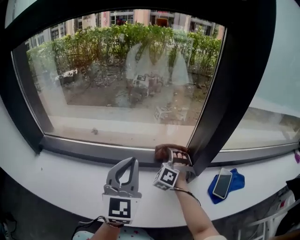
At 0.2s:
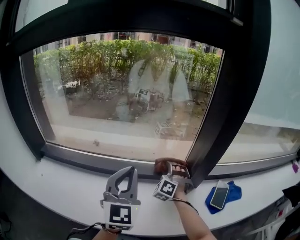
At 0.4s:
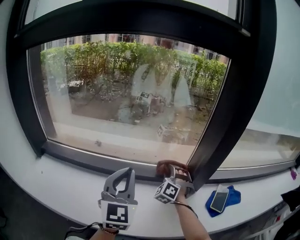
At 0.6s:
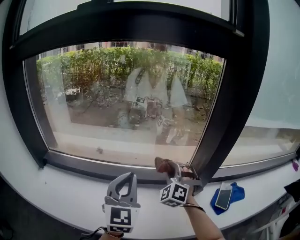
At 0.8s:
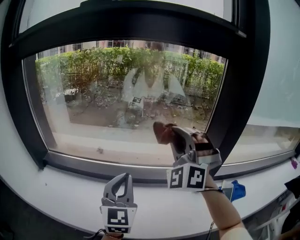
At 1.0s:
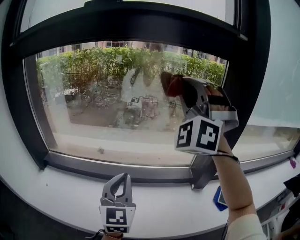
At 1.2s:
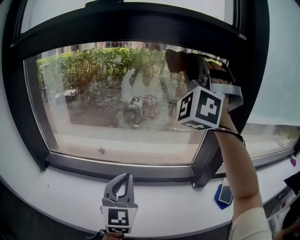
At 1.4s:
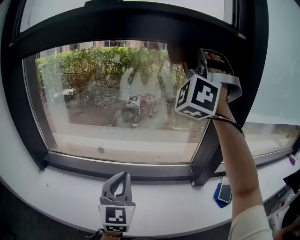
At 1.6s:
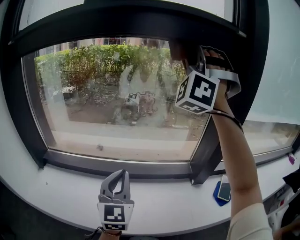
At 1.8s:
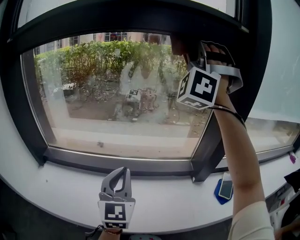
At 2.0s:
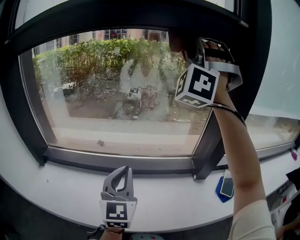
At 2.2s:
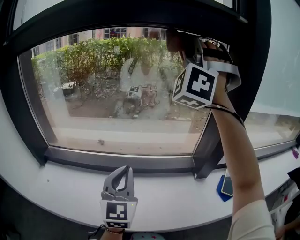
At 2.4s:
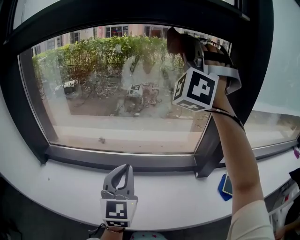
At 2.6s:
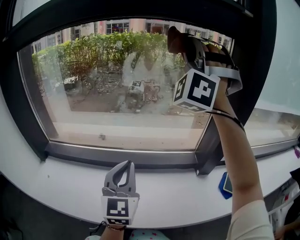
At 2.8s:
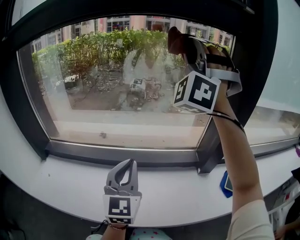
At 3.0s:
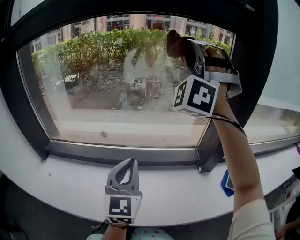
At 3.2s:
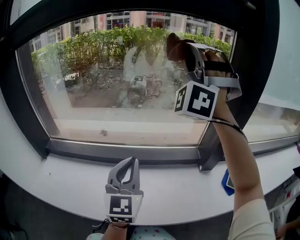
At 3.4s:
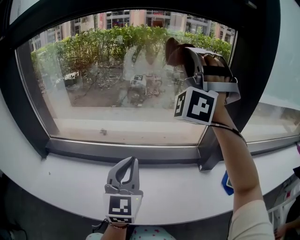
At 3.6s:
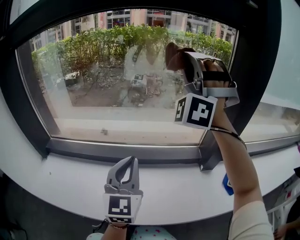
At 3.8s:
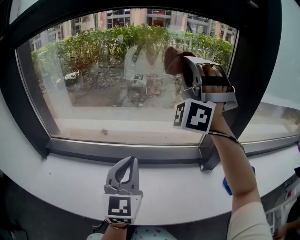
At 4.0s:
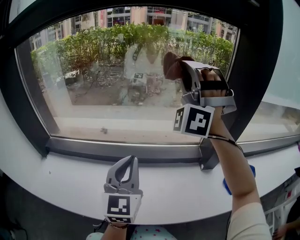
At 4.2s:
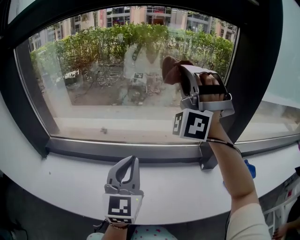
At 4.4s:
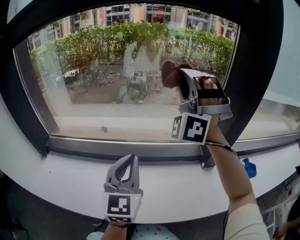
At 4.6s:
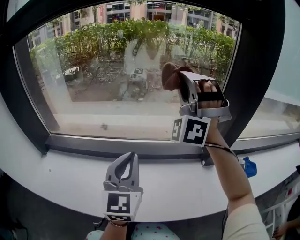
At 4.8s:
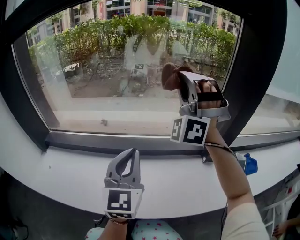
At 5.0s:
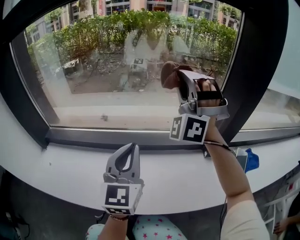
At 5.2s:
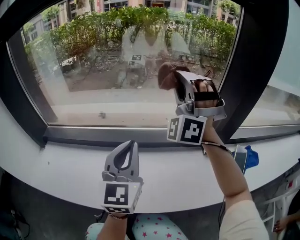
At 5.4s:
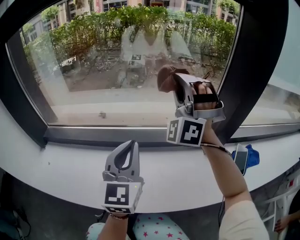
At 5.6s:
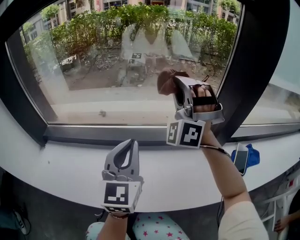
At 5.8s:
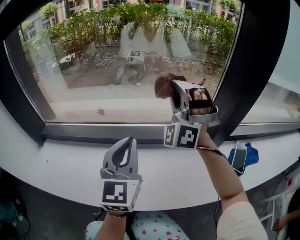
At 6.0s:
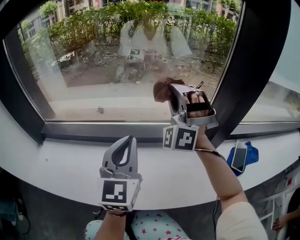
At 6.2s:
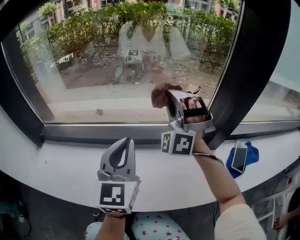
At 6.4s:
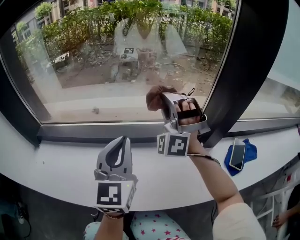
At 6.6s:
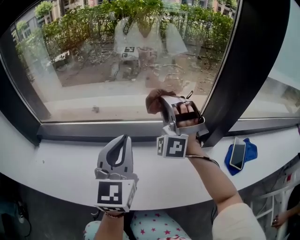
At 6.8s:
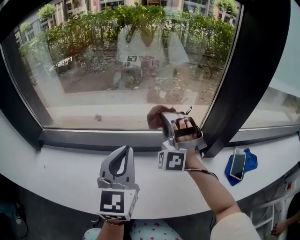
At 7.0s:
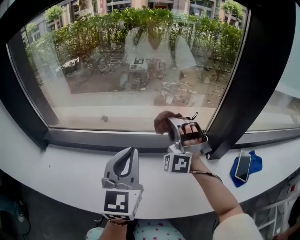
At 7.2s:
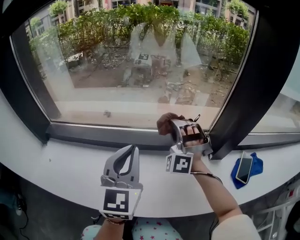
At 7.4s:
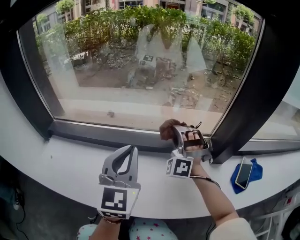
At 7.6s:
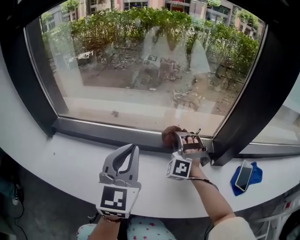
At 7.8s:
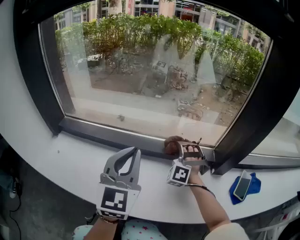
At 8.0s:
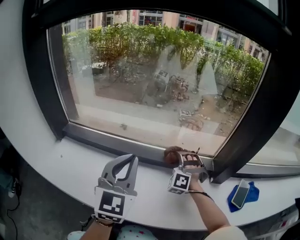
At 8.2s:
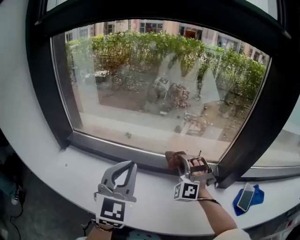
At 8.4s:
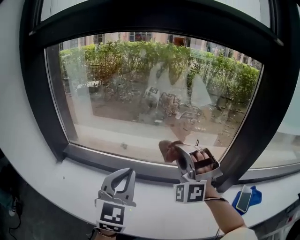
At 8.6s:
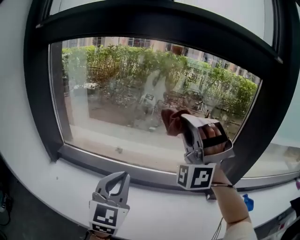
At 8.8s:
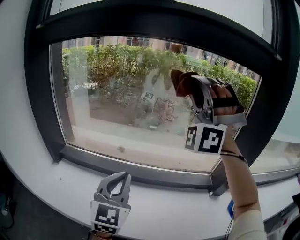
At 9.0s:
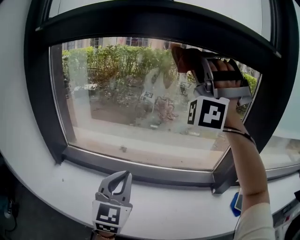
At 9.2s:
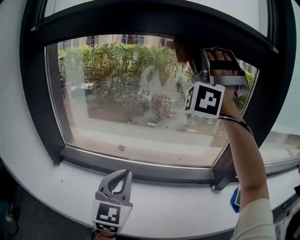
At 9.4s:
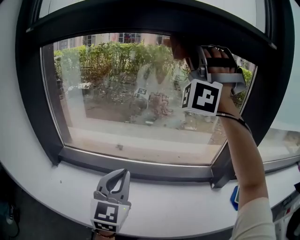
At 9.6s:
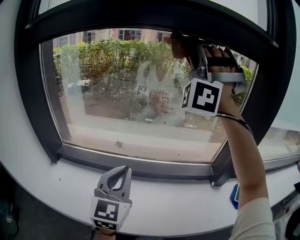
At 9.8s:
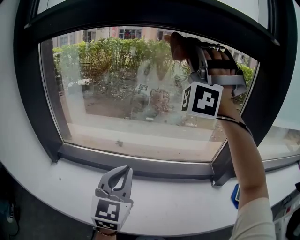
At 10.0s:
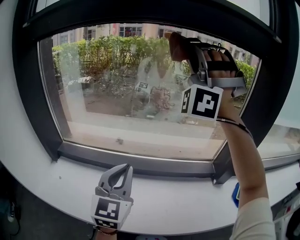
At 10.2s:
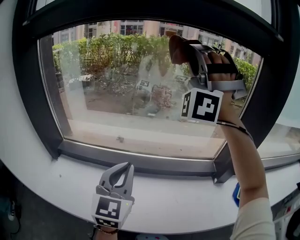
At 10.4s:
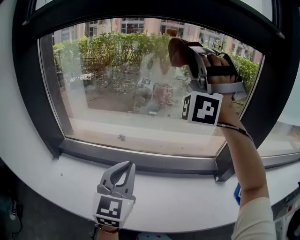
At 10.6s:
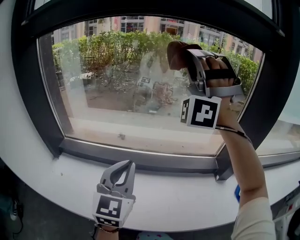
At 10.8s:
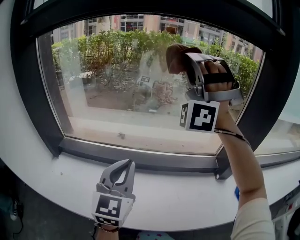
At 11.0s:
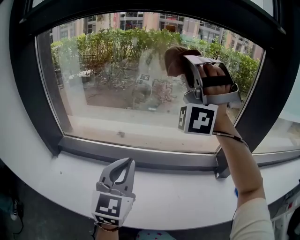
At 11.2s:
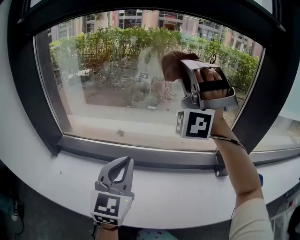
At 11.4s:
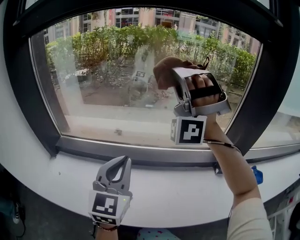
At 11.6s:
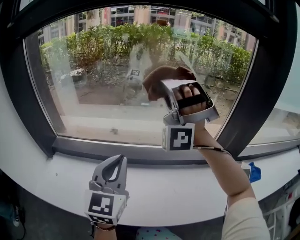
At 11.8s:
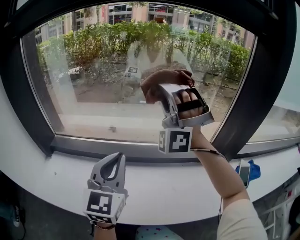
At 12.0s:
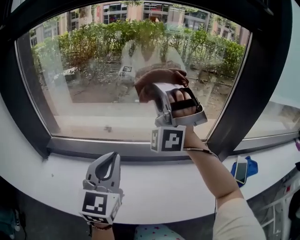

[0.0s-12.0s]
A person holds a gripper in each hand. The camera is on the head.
0.0s to 1.6s: The left gripper moves about 10 cm.
7.6s to 9.0s: The left gripper shifts by approximately 10 cm.

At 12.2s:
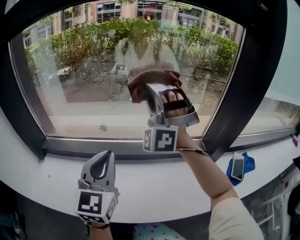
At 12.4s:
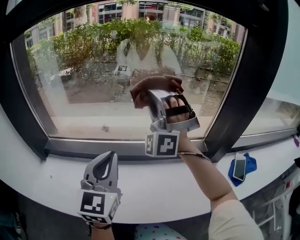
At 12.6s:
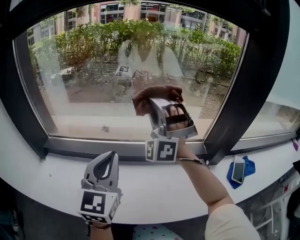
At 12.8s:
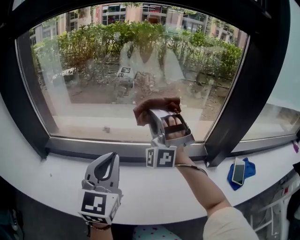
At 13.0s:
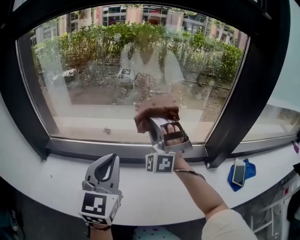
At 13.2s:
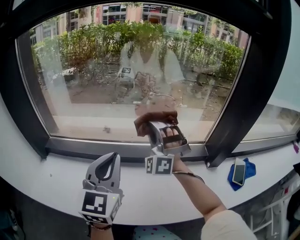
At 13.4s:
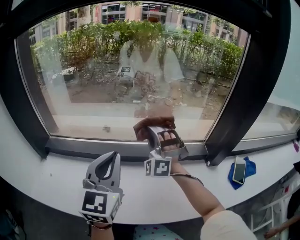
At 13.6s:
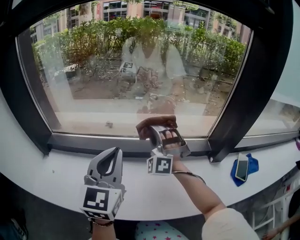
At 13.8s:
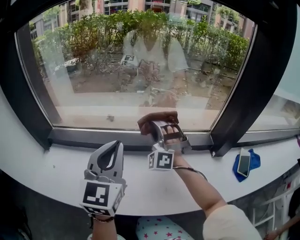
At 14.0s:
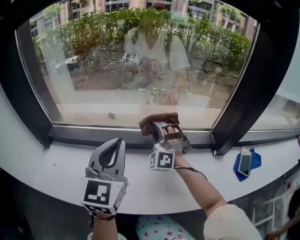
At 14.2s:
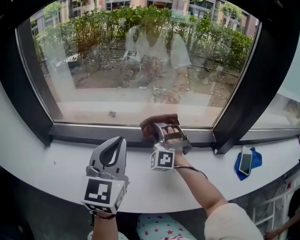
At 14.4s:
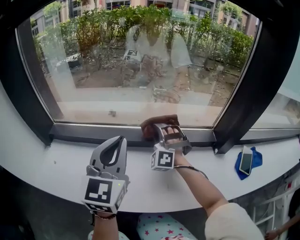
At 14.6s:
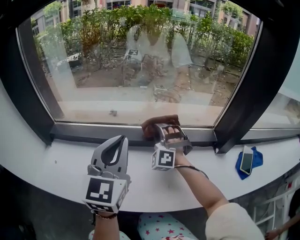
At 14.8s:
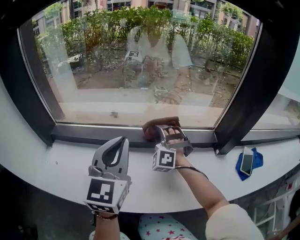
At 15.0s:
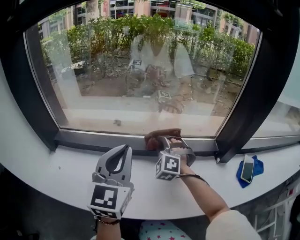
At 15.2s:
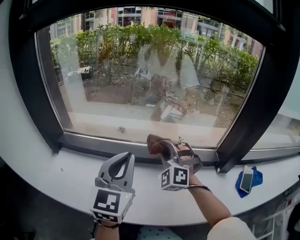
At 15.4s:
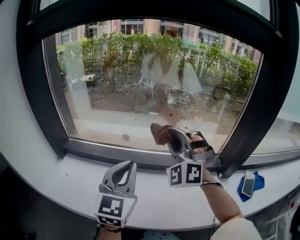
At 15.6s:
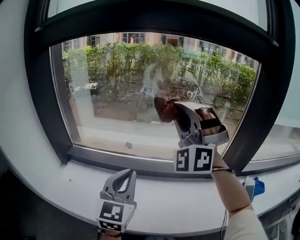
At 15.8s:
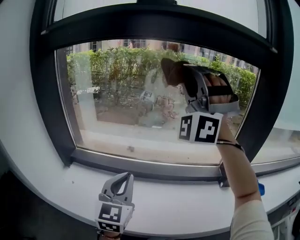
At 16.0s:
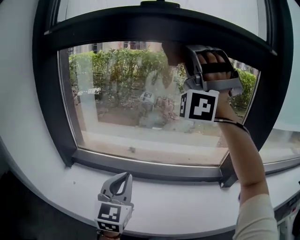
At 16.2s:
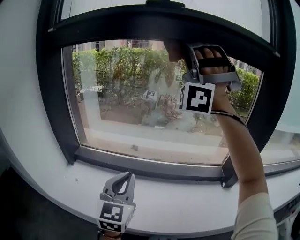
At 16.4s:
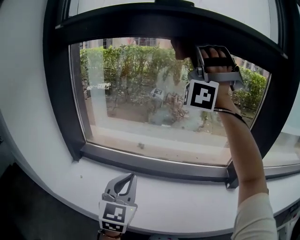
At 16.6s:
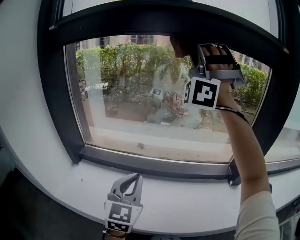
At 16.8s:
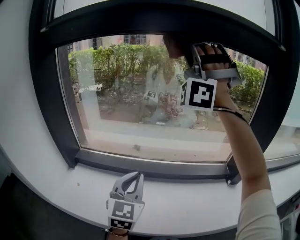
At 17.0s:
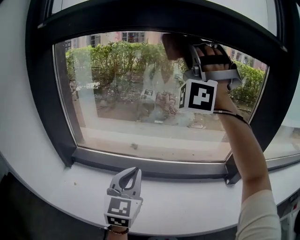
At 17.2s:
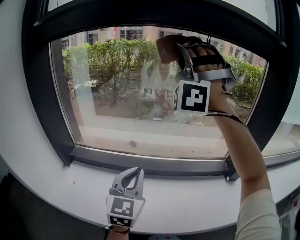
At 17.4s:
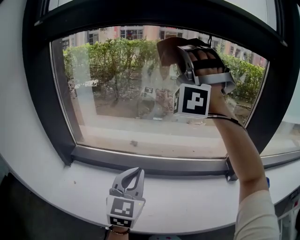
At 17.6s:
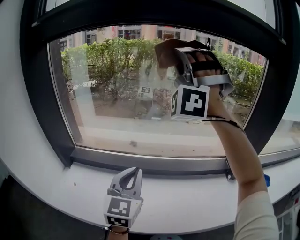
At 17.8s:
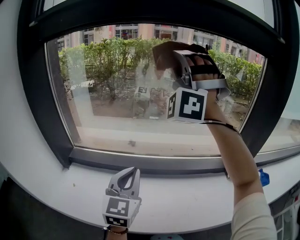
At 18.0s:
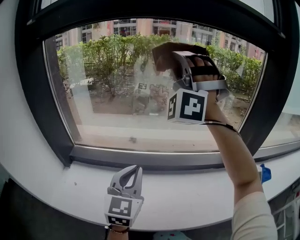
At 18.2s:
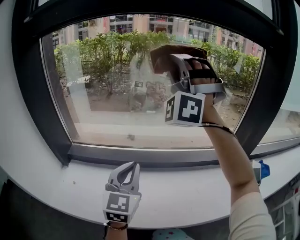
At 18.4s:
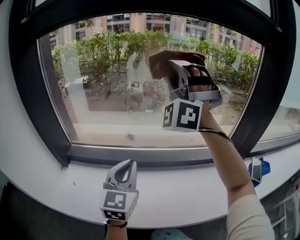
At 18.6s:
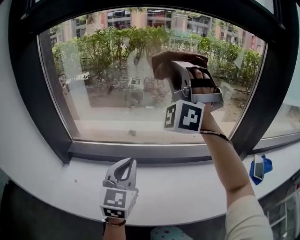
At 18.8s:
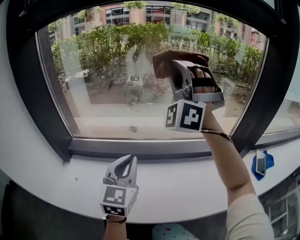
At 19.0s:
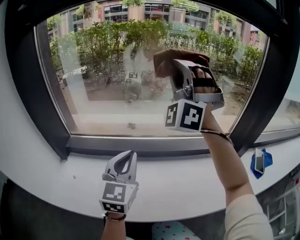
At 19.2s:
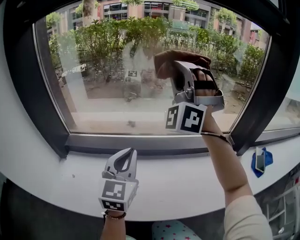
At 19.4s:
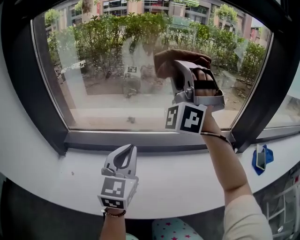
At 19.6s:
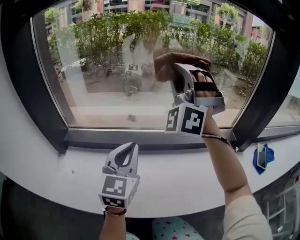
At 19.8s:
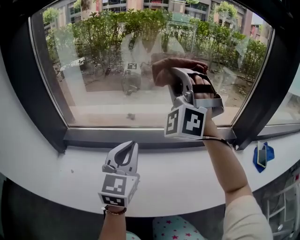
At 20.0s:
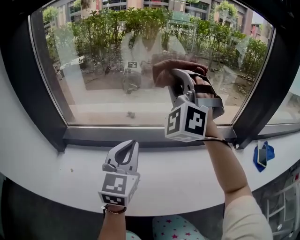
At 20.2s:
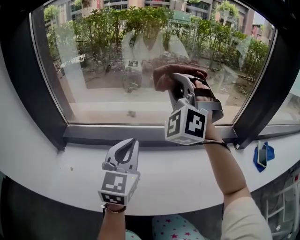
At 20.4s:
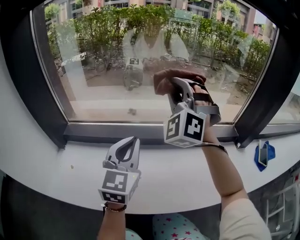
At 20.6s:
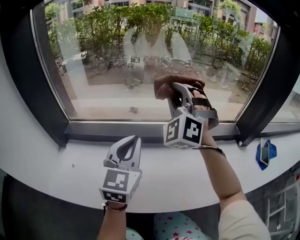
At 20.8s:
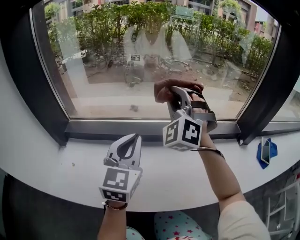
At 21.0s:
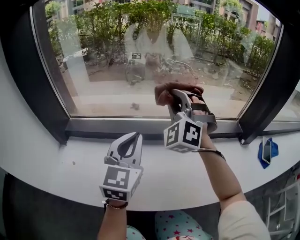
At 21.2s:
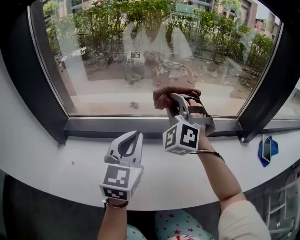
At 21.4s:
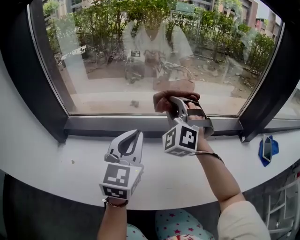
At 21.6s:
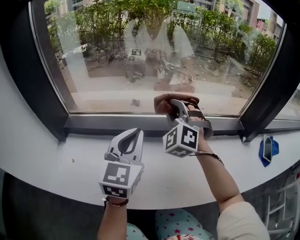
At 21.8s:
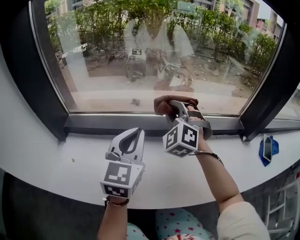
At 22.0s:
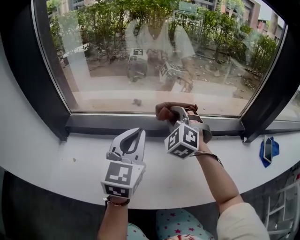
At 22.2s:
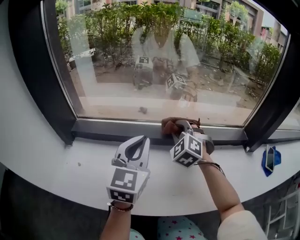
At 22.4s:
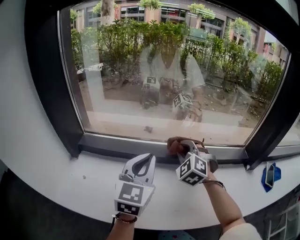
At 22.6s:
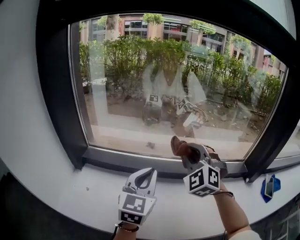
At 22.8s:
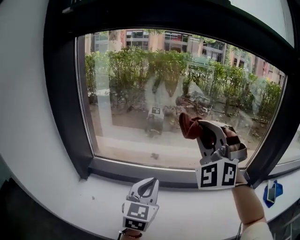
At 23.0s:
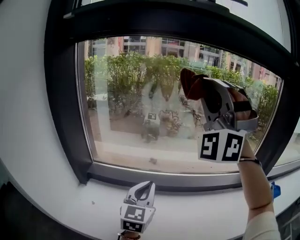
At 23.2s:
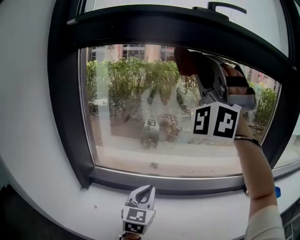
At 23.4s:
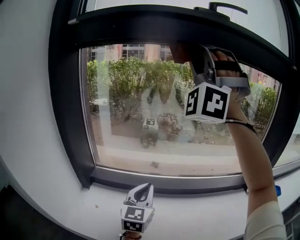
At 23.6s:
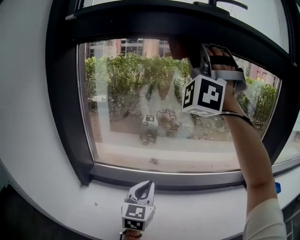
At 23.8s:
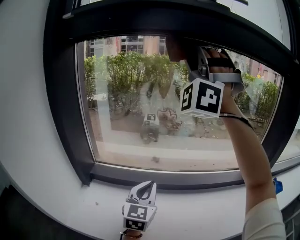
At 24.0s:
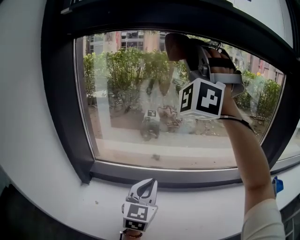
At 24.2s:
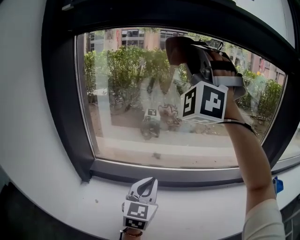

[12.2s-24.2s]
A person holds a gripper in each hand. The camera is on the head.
15.2s to 16.6s: The left gripper shifts by approximately 5 cm.

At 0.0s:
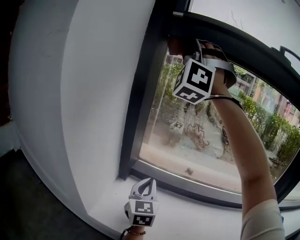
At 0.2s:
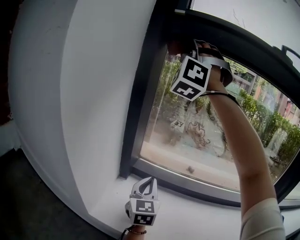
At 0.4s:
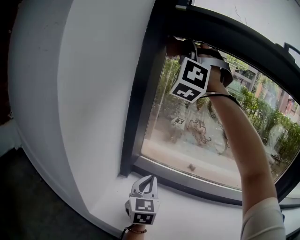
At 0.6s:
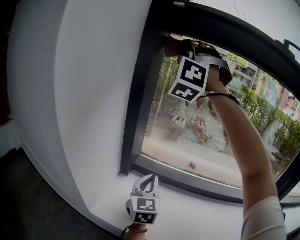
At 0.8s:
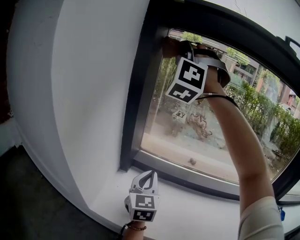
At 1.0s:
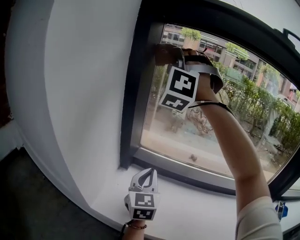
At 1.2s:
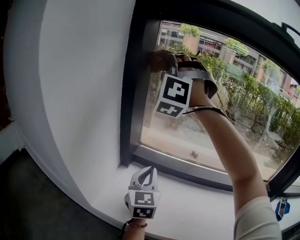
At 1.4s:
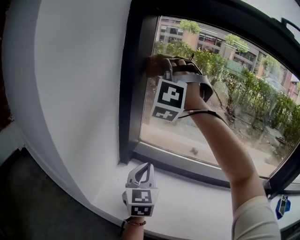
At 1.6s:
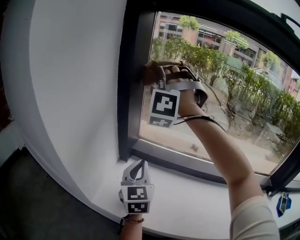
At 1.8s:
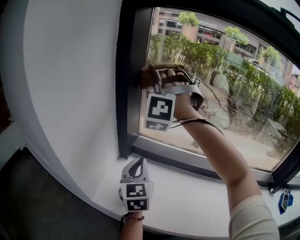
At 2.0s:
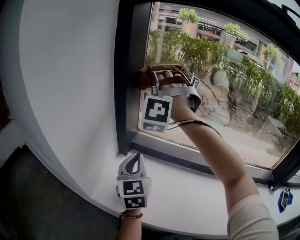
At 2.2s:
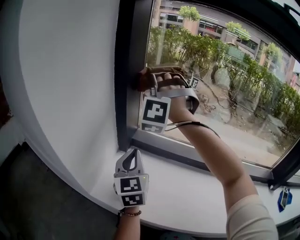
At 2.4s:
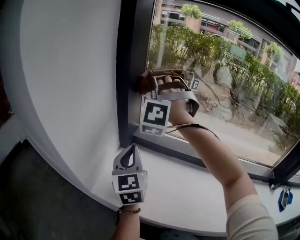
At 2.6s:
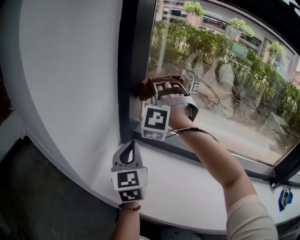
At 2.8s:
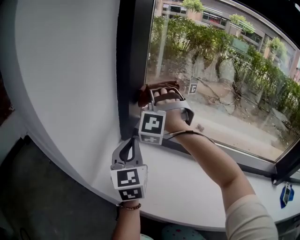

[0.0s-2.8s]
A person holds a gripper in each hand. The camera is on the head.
1.4s to 2.8s: The left gripper ends up approximately 5 cm from where it was.
